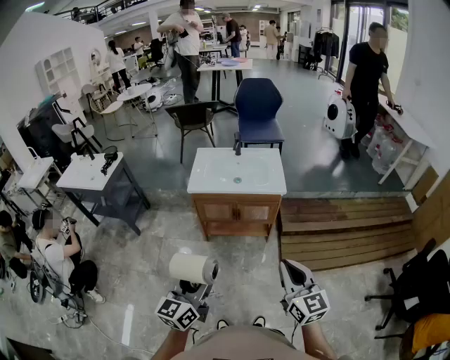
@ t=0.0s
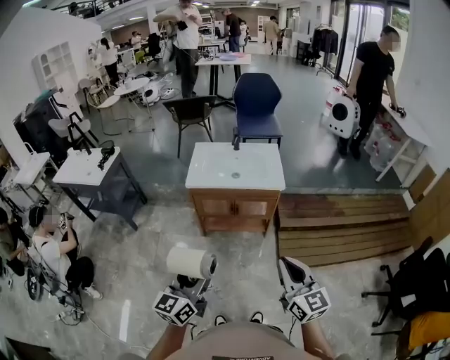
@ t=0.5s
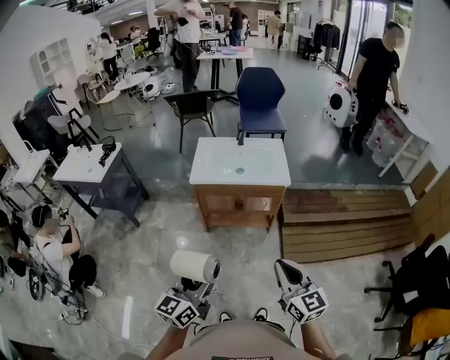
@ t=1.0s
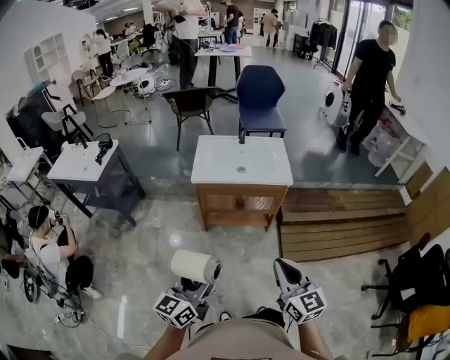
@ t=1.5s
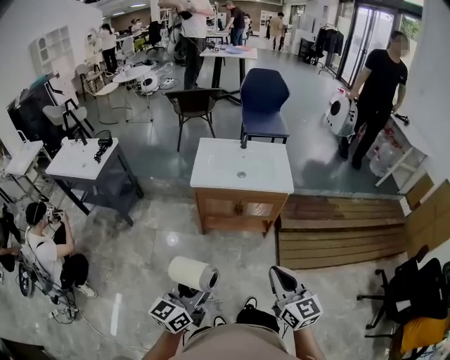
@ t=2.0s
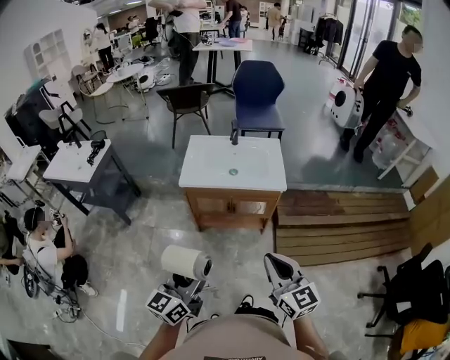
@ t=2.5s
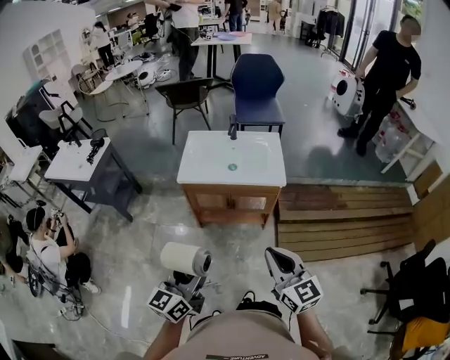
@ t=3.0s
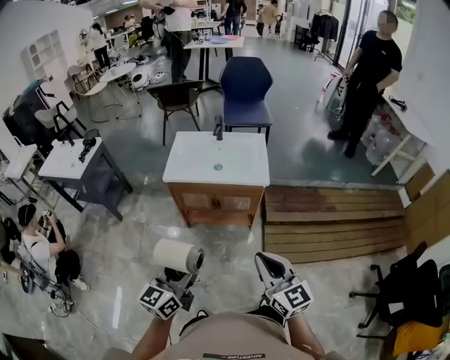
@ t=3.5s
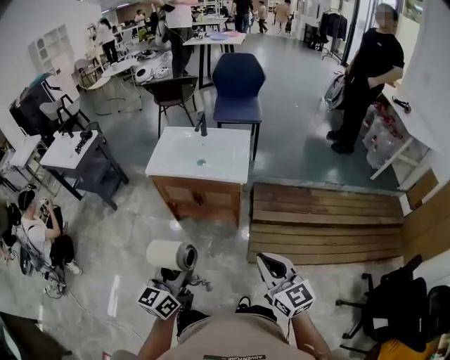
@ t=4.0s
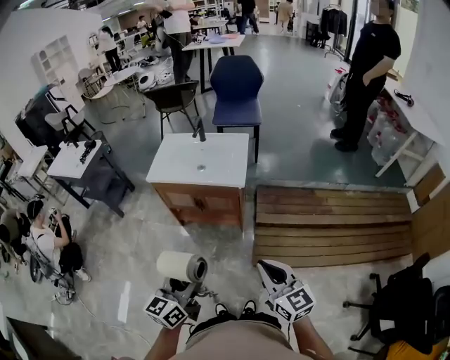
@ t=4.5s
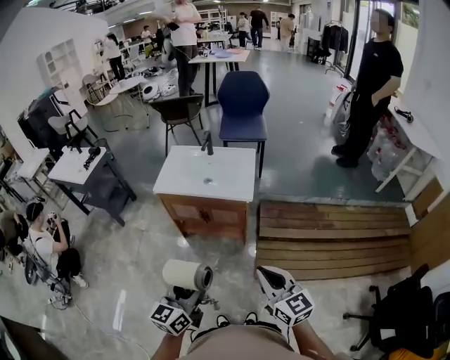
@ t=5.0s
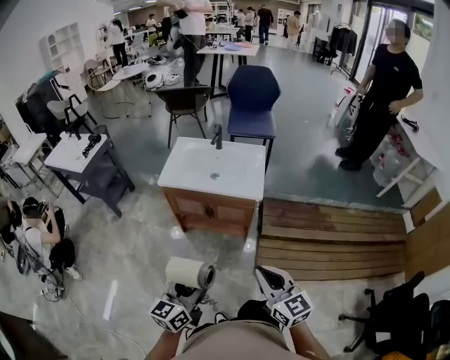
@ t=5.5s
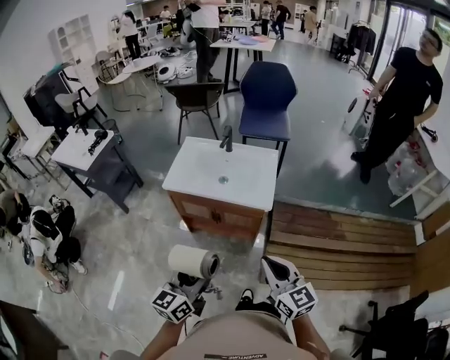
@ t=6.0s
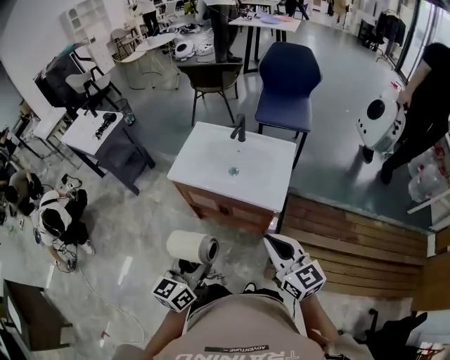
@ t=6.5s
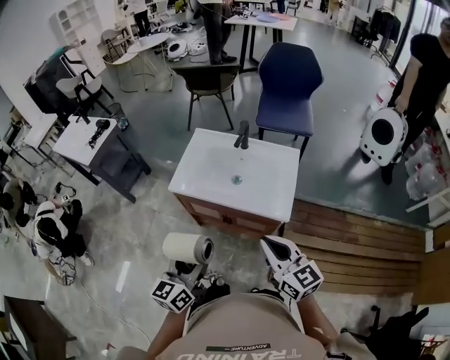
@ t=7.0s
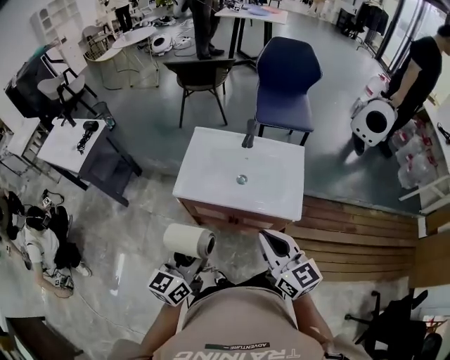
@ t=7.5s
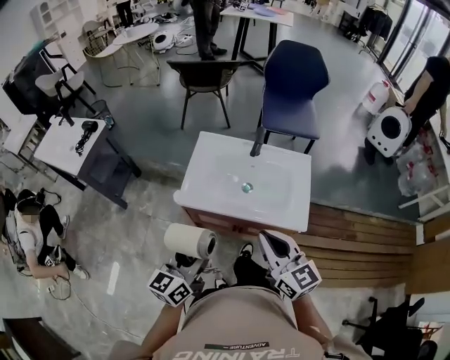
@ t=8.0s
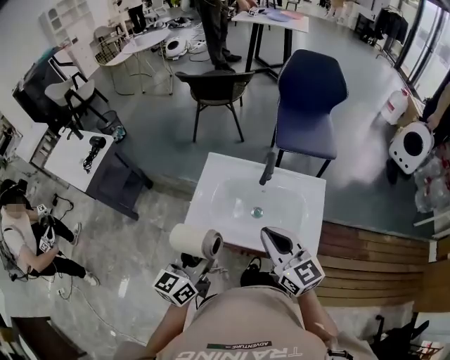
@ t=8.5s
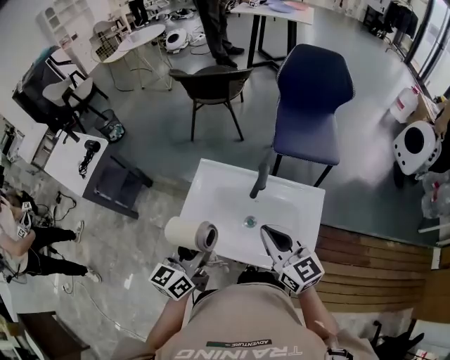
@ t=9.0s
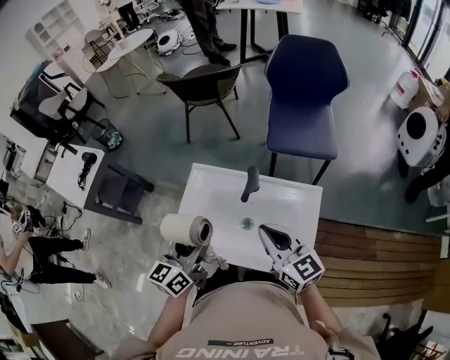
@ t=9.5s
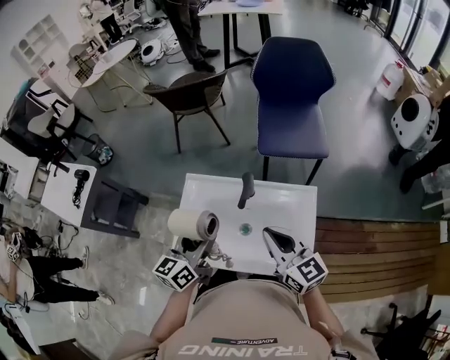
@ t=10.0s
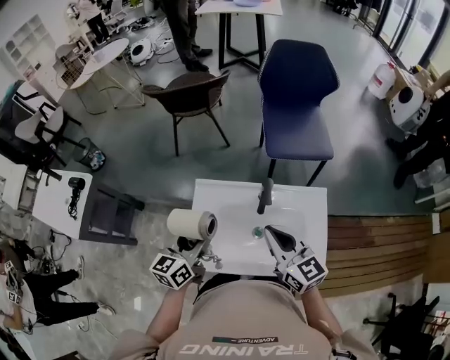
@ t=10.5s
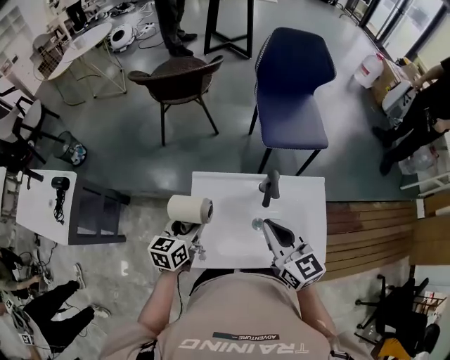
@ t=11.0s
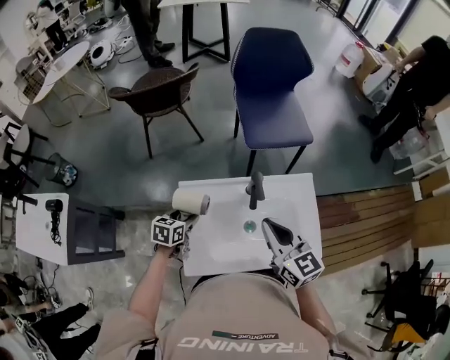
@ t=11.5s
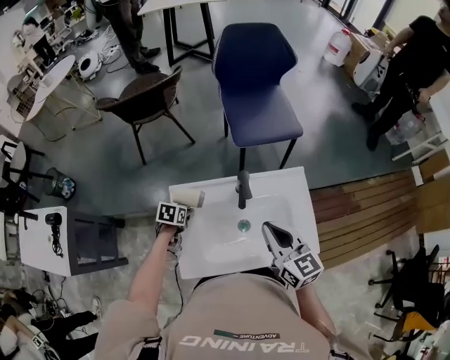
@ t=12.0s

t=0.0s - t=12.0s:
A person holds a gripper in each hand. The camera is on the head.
t=0.0s - t=2.0s: The left gripper shifts approximately 5 cm to the left, while the right gripper is displaced to the left by about 10 cm.
t=2.0s - t=4.0s: The grippers both shift to the right by approximately 30 cm.
t=4.0s - t=6.0s: The two grippers go approximately 15 cm forward.
t=6.0s - t=8.0s: Both grippers travel together forward and to the left, some 30 cm.
t=8.0s - t=10.0s: The grippers both shift forward and to the right by about 30 cm.
t=10.0s - t=12.0s: The left gripper moves downward, some 25 cm, and tips its fingers downward by roughly 50 degrees. The right gripper rotates roughly 20 degrees.

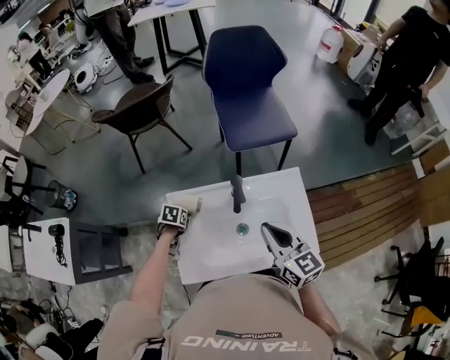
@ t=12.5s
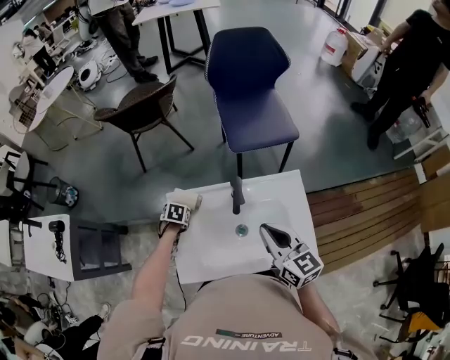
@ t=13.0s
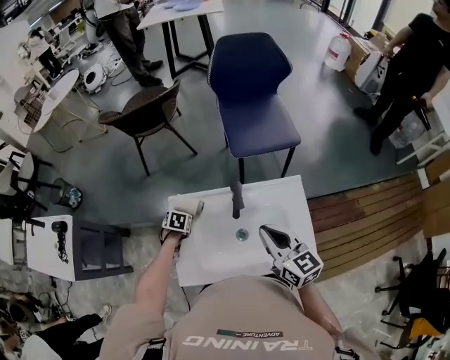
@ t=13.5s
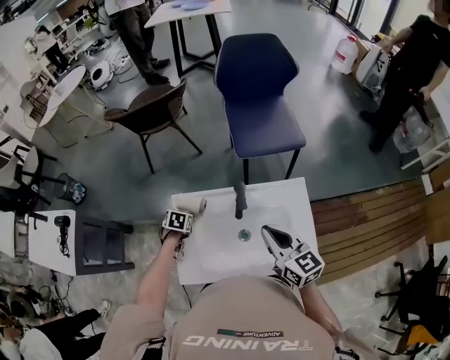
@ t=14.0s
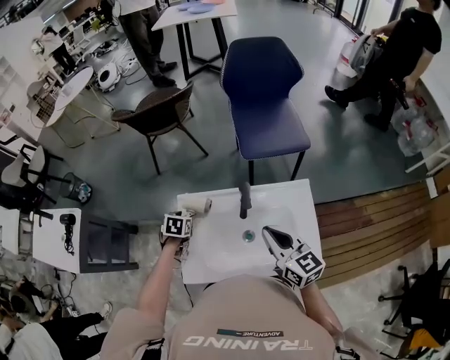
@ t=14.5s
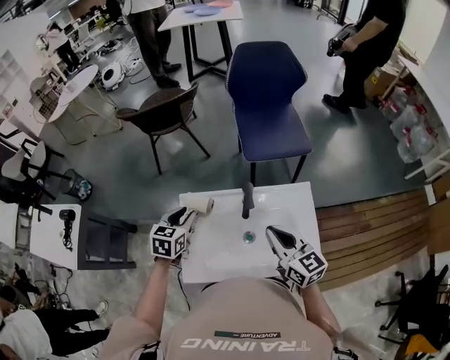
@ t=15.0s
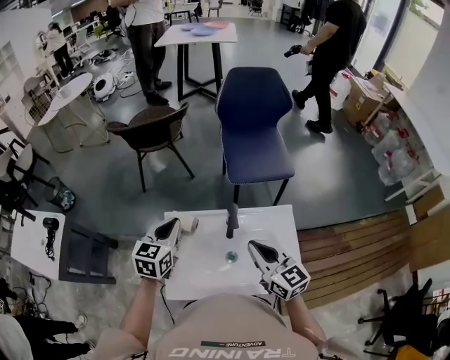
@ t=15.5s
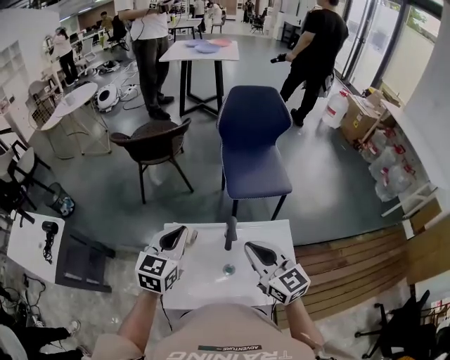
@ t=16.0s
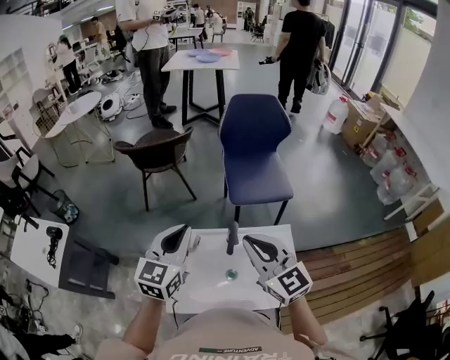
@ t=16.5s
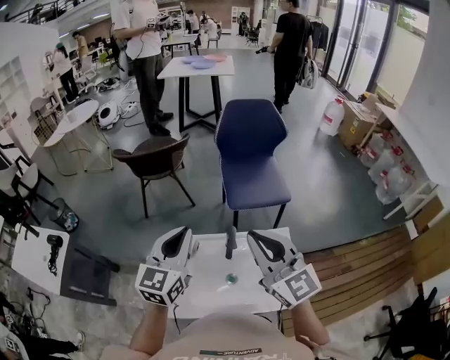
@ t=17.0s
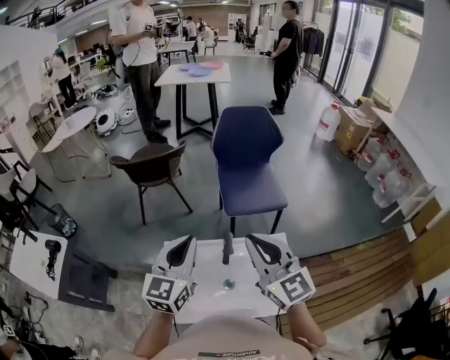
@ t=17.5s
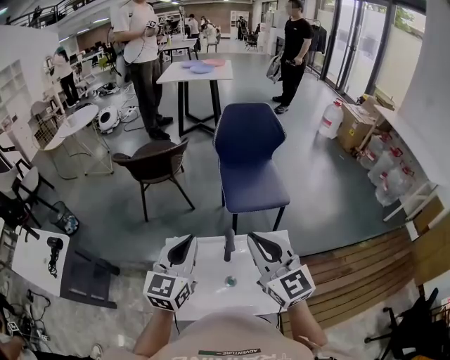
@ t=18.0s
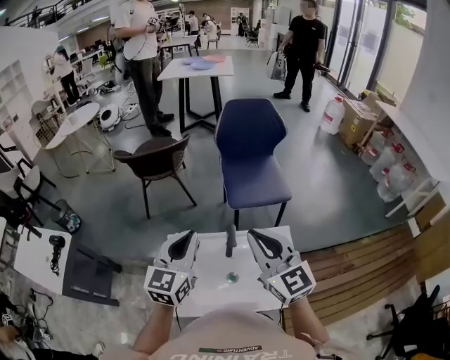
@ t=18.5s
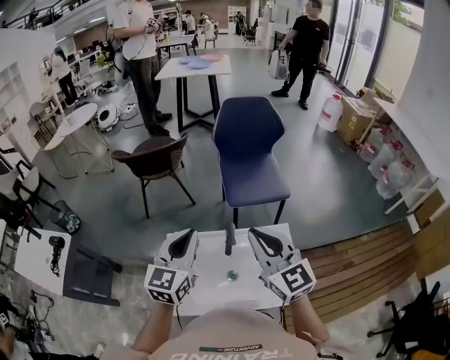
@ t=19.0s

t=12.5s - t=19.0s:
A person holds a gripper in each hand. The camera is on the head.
t=12.5s - t=14.5s: The left gripper goes some 5 cm upward.
t=14.5s - t=17.0s: The right gripper shifts roughly 20 cm upward, and turns by roughly 30 degrees; the left gripper travels upward by roughly 35 cm, tilts its fingers roughly 60 degrees upward, and closes its fingers.
t=17.0s - t=19.0s: The grippers stay close to where they were, moving slightly.

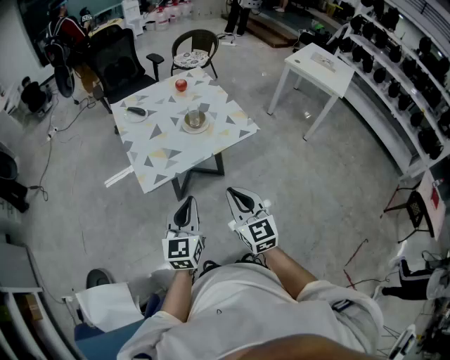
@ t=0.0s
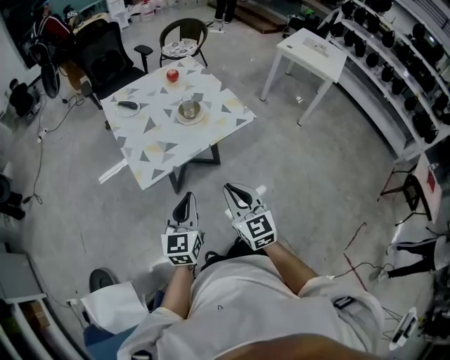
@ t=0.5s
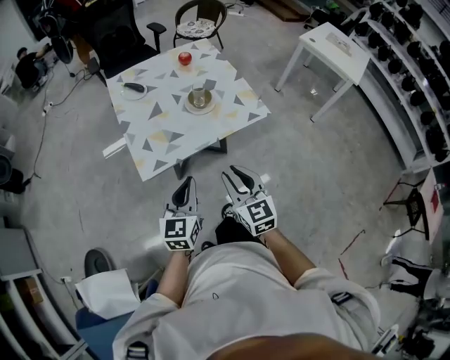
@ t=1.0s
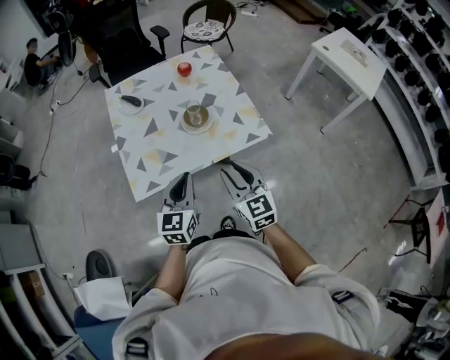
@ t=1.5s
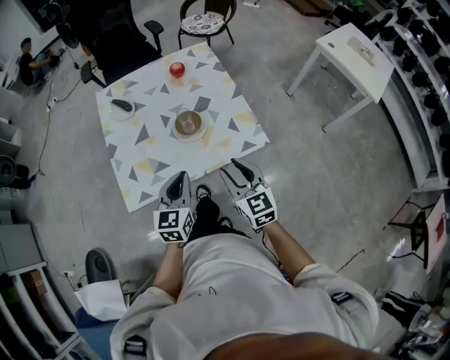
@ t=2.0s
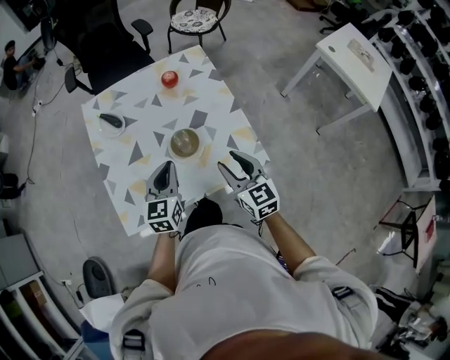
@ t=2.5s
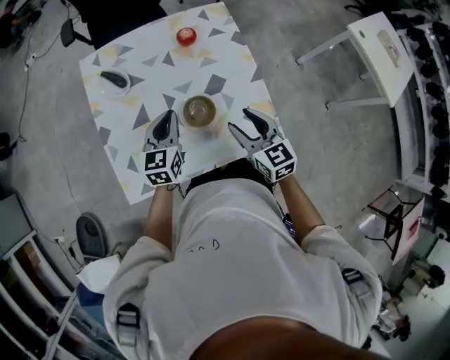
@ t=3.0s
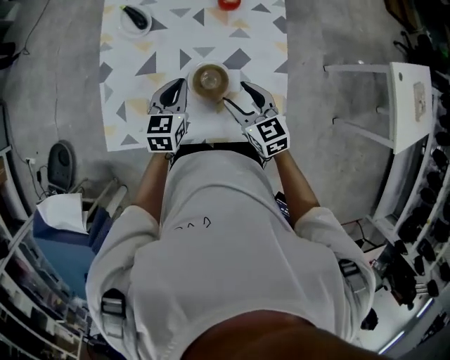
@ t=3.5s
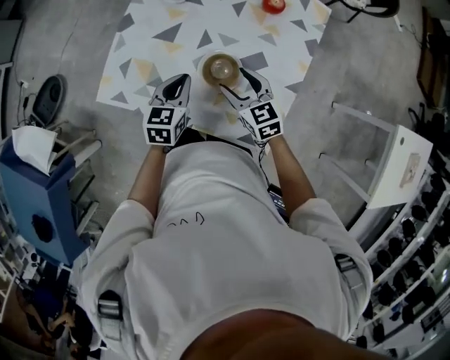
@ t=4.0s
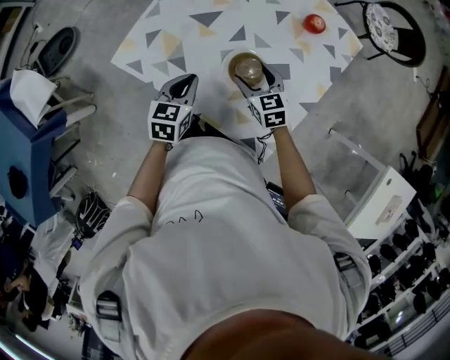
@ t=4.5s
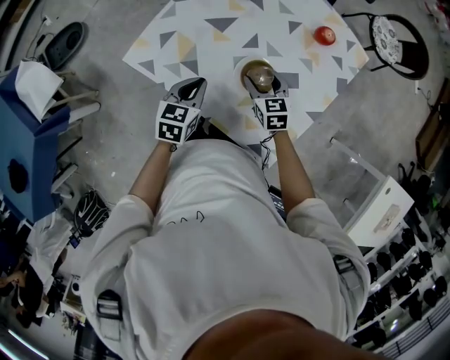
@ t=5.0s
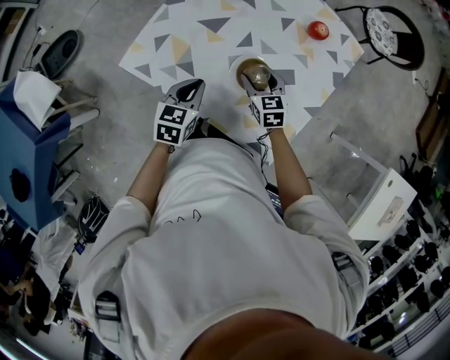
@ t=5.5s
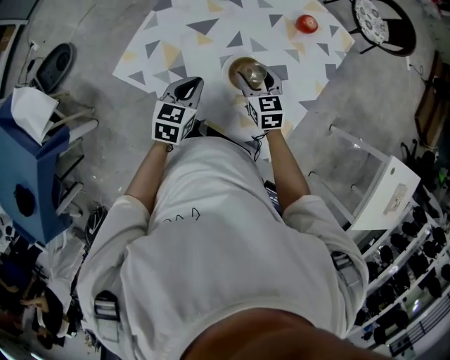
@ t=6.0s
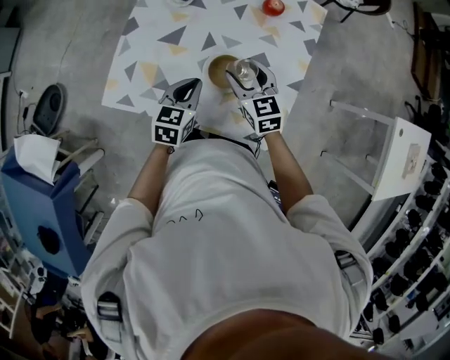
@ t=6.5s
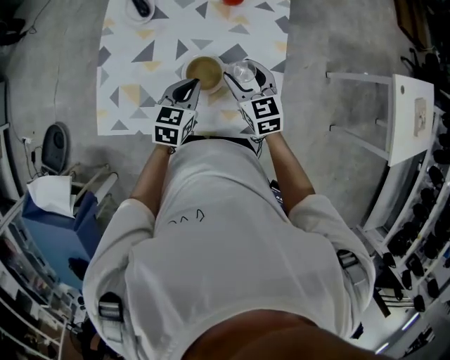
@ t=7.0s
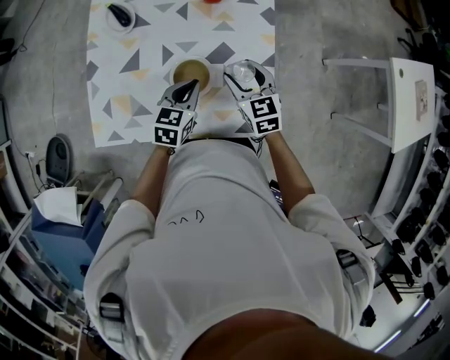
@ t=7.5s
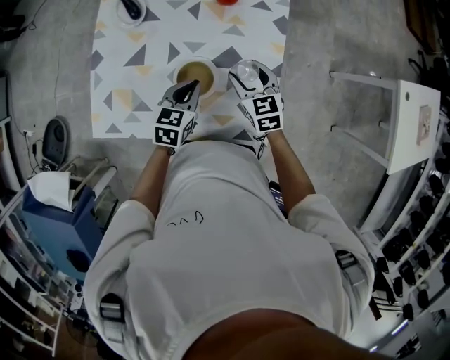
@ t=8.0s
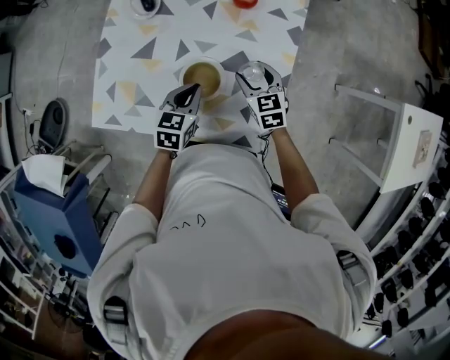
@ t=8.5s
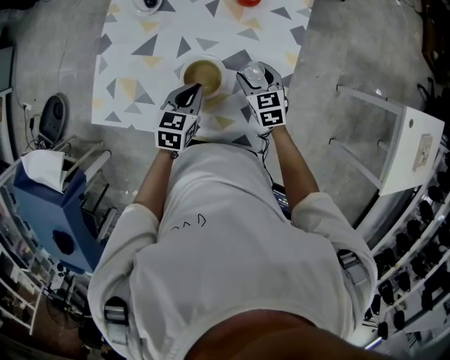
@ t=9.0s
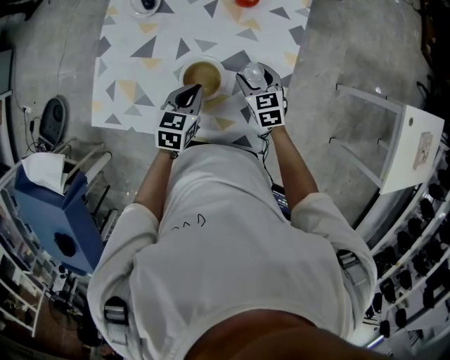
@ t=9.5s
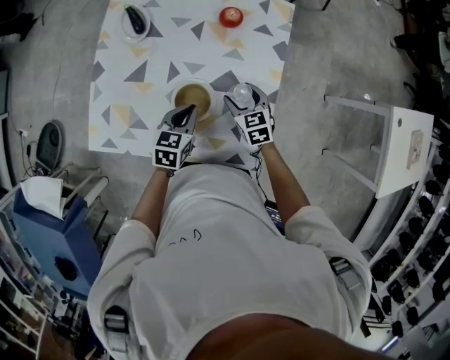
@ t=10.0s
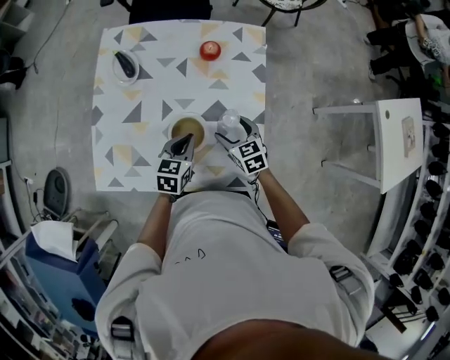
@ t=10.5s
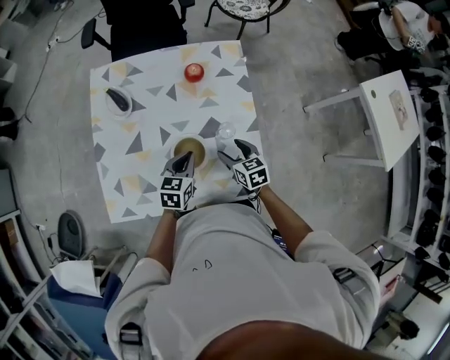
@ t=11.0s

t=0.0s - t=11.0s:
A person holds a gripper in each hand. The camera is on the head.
t=0.0s - t=2.0s: The two grippers go approximately 30 cm forward. The right gripper opens.
t=2.0s - t=3.5s: The two grippers go some 25 cm forward. The right gripper swivels roughly 30 degrees.
t=3.5s - t=5.5s: The left gripper changes place by approximately 15 cm, and turns by roughly 30 degrees. The right gripper moves downward, approximately 10 cm, and turns by about 20 degrees.
t=5.5s - t=7.5s: The left gripper shifts by about 20 cm, and changes its angle by some 30 degrees; the right gripper ends up roughly 15 cm from where it was, and turns by roughly 30 degrees.
t=7.5s - t=9.0s: The right gripper heads downward, covering roughly 10 cm.
t=9.0s - t=11.0s: The right gripper travels backward by approximately 5 cm, and rotates roughly 20 degrees.
